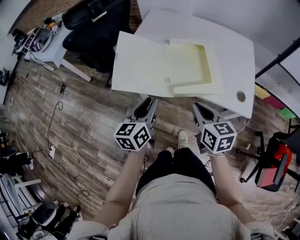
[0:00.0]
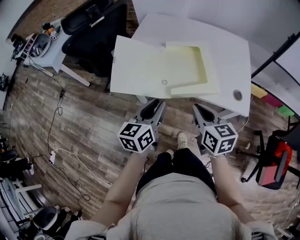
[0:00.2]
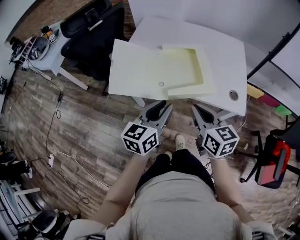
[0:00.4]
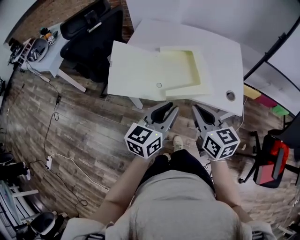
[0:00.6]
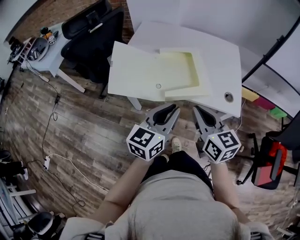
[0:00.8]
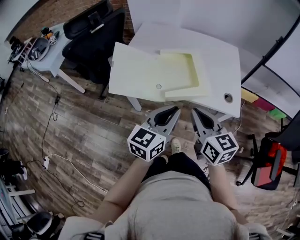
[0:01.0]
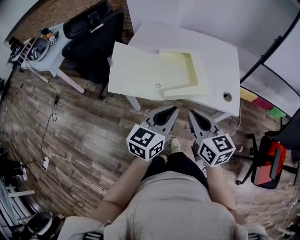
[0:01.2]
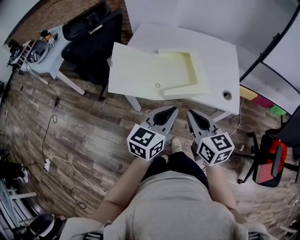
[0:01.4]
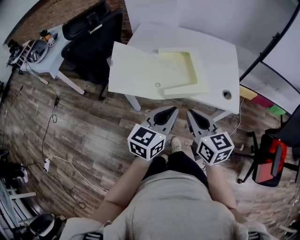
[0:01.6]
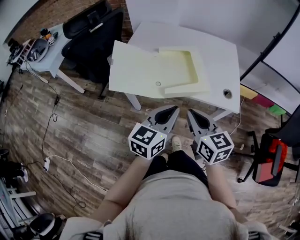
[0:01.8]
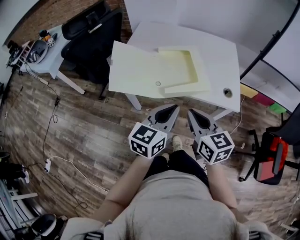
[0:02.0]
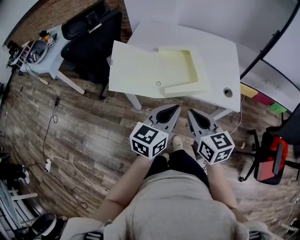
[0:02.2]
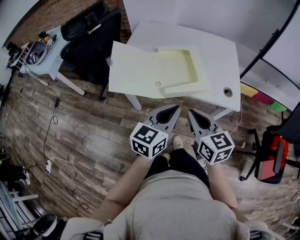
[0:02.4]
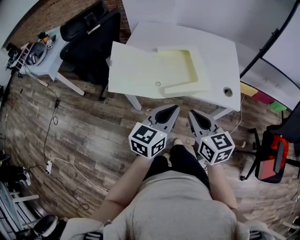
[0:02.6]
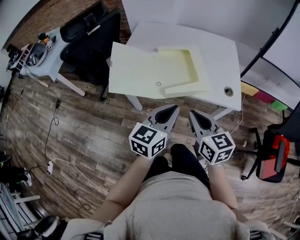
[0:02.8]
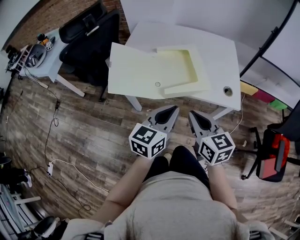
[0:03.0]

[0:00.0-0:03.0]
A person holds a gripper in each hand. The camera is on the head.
0:00.0 to 0:01.6: The left gripper shifts about 15 cm to the right, upward and backward, swivels about 30 degrees, and closes. The right gripper goes about 10 cm upward and backward.
0:01.6 to 0:03.0: There are only small adjustments of the grippers.

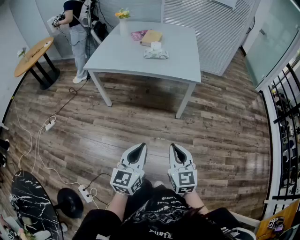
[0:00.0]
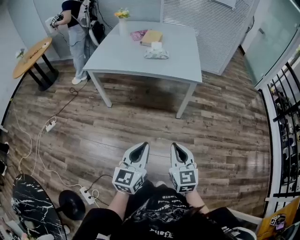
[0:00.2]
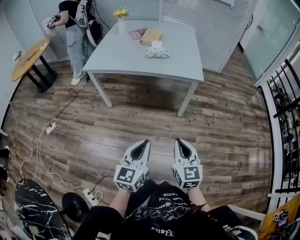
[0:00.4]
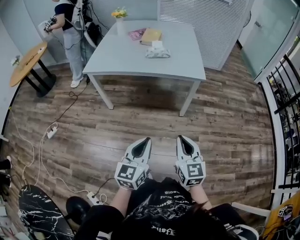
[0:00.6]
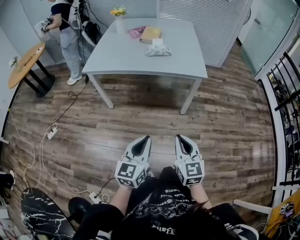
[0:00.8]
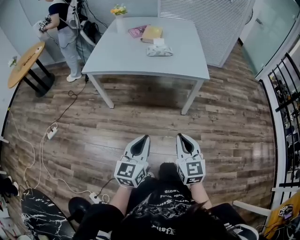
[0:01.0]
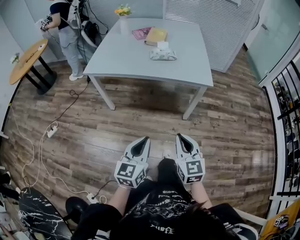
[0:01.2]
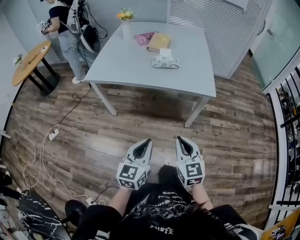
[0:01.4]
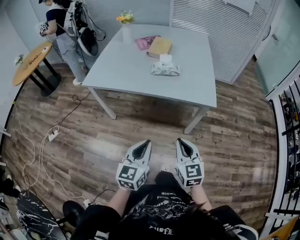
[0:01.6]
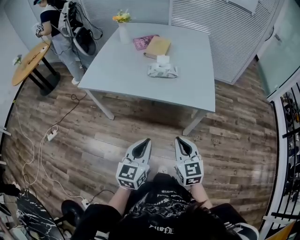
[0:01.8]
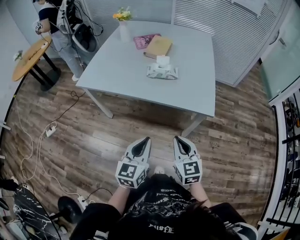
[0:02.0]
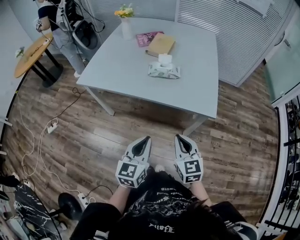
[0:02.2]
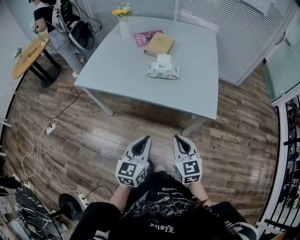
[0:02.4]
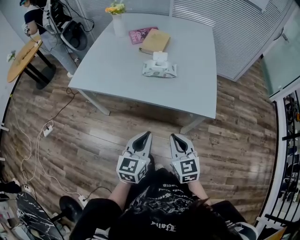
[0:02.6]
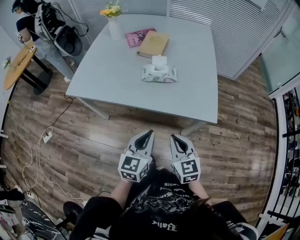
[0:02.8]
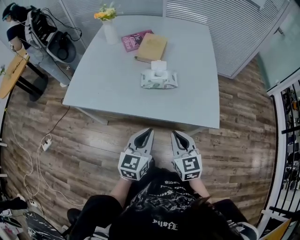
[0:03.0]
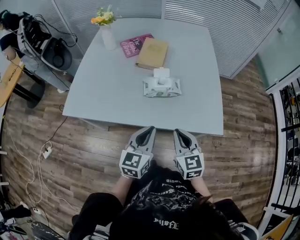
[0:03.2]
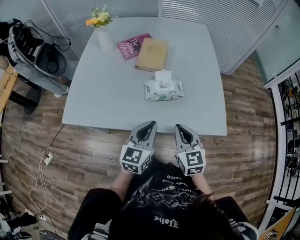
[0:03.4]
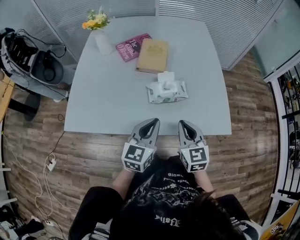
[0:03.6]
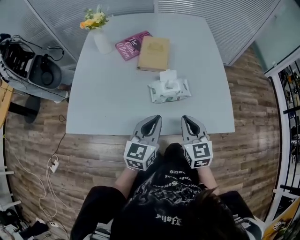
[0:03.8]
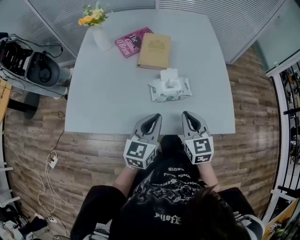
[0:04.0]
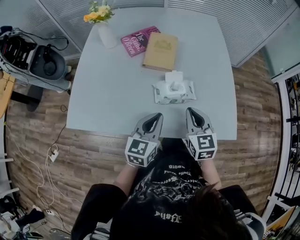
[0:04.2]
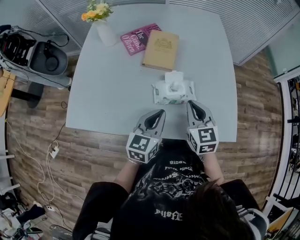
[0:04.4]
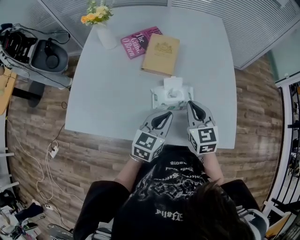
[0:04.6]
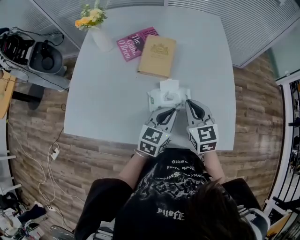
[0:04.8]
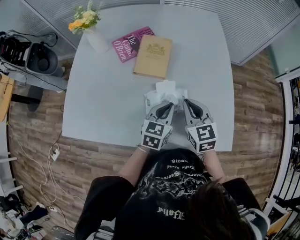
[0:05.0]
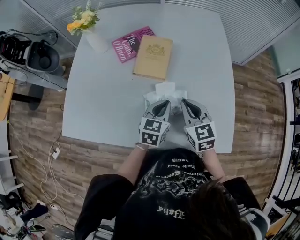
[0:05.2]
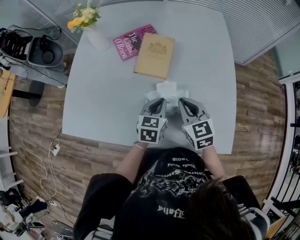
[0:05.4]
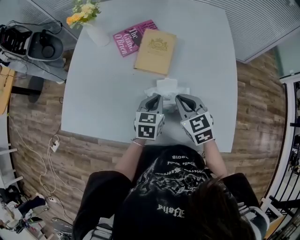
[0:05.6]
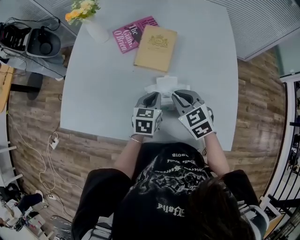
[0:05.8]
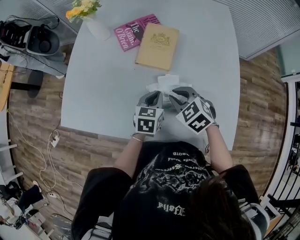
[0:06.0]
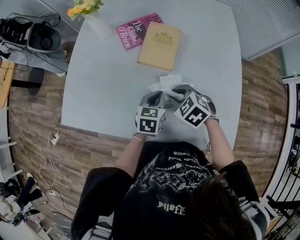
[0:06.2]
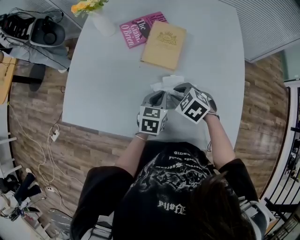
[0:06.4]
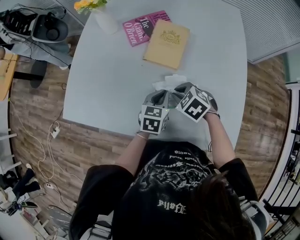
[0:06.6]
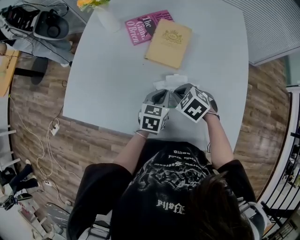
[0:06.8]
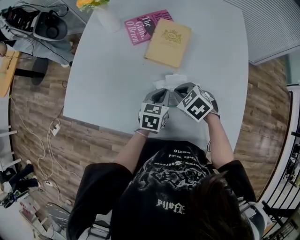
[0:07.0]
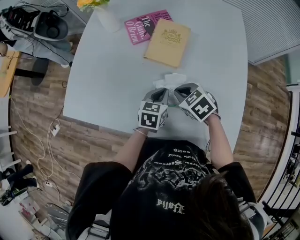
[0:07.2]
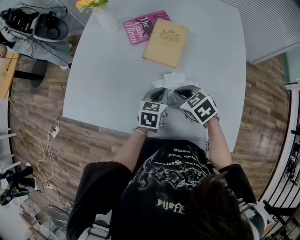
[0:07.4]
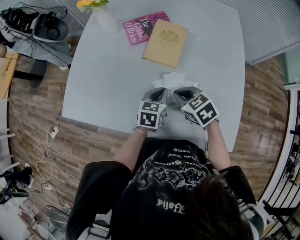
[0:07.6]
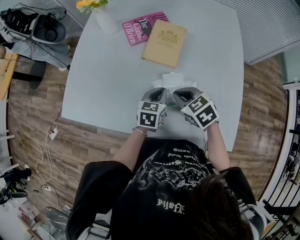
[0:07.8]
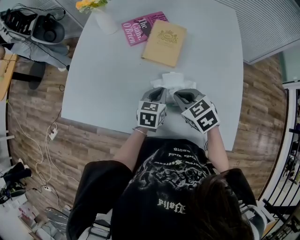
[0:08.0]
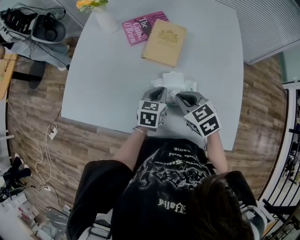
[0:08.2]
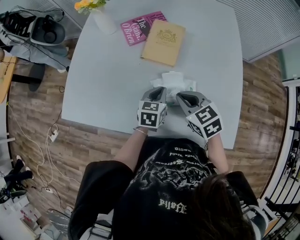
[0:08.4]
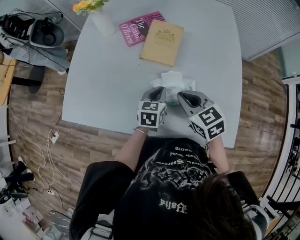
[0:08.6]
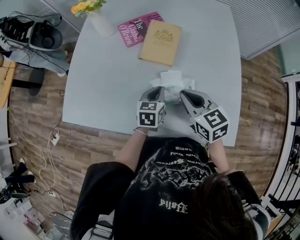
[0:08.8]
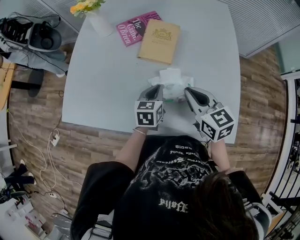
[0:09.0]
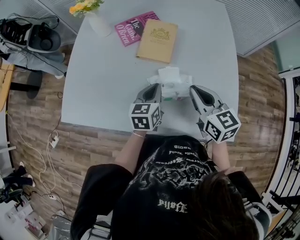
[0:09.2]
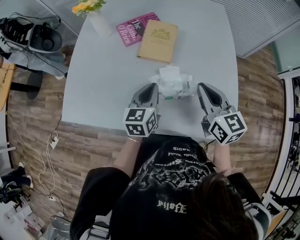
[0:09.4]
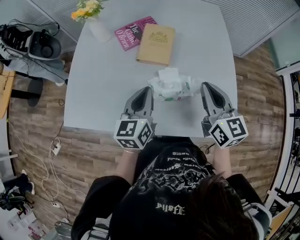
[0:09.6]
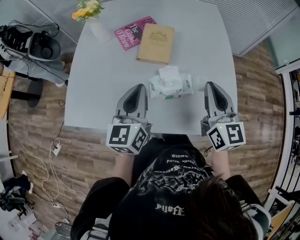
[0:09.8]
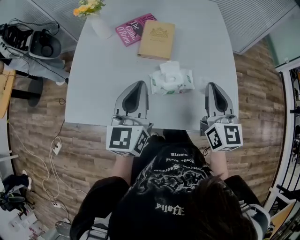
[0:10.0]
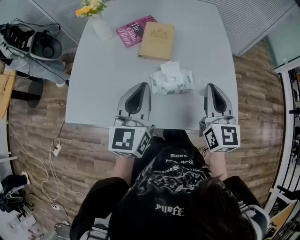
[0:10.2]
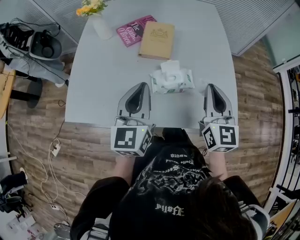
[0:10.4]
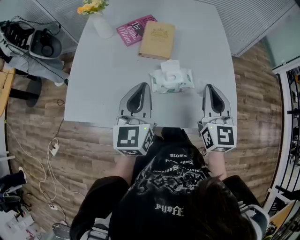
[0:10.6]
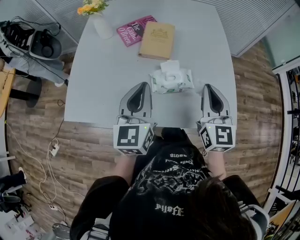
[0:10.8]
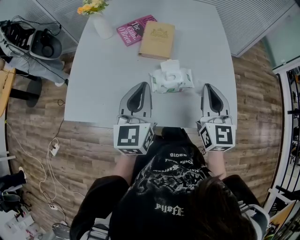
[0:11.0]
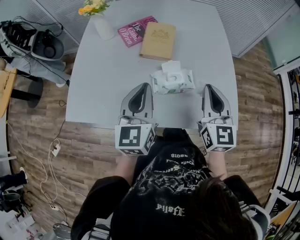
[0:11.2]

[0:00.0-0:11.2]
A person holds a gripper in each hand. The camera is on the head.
0:00.0 to 0:01.6: Both grippers travel together forward, approximately 25 cm.
0:01.6 to 0:03.2: Both grippers travel together forward, roughly 30 cm.
0:03.2 to 0:04.8: The two grippers go about 20 cm forward.
0:04.8 to 0:06.4: The right gripper travels downward by some 10 cm, angles its fingers downward, by some 30 degrees, and opens up; the left gripper shifts by roughly 10 cm, and swivels about 20 degrees.
0:06.4 to 0:08.0: The right gripper shifts by approximately 5 cm, and closes up.
0:08.0 to 0:09.6: The left gripper shifts roughly 15 cm upward, and rotates some 20 degrees, while the right gripper moves upward and to the right, some 15 cm, and angles its fingers upward, by some 40 degrees.
0:09.6 to 0:11.2: The right gripper is displaced backward by roughly 5 cm. Meanwhile the left gripper goes roughly 10 cm upward and backward.

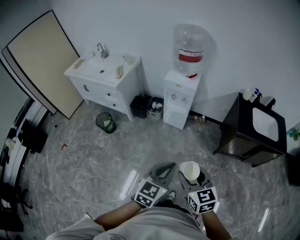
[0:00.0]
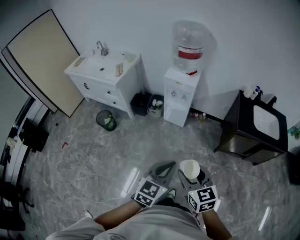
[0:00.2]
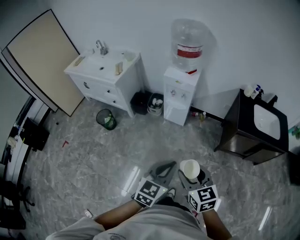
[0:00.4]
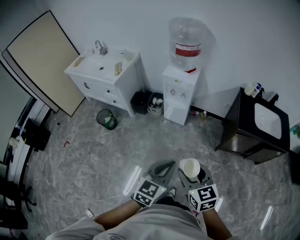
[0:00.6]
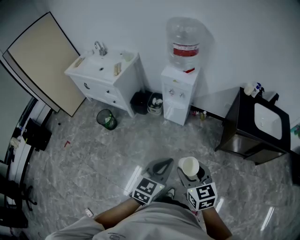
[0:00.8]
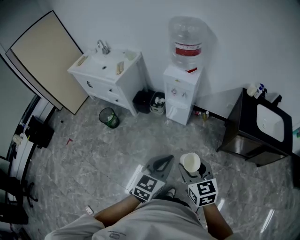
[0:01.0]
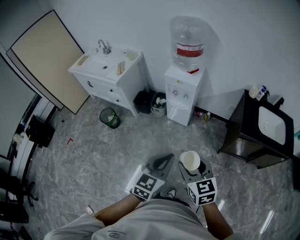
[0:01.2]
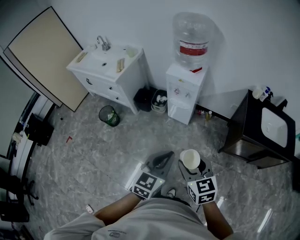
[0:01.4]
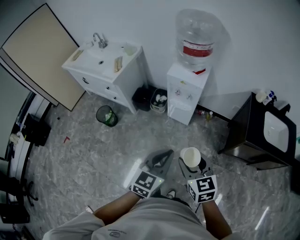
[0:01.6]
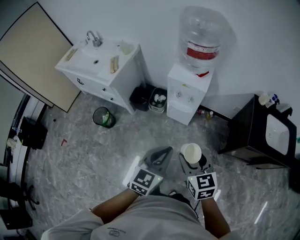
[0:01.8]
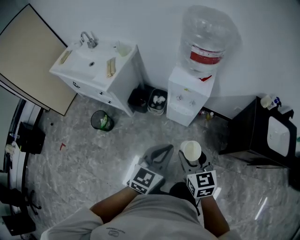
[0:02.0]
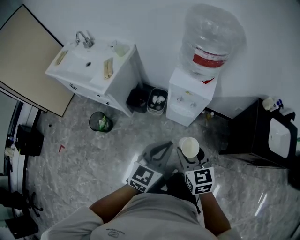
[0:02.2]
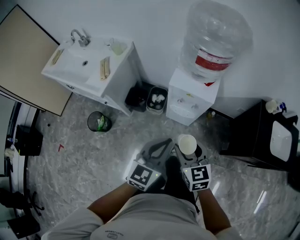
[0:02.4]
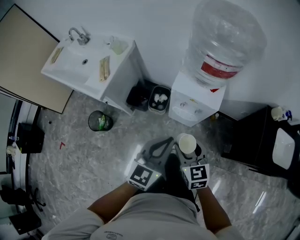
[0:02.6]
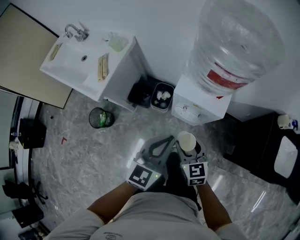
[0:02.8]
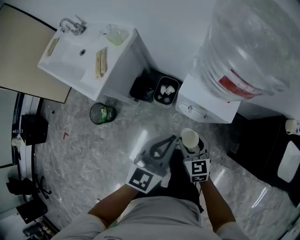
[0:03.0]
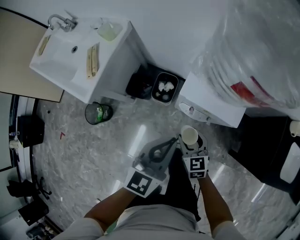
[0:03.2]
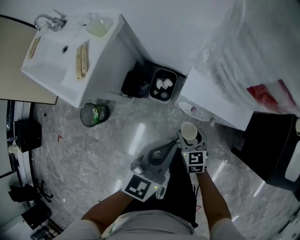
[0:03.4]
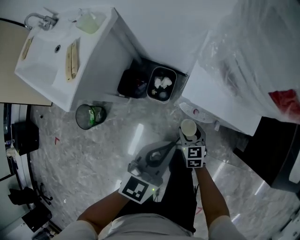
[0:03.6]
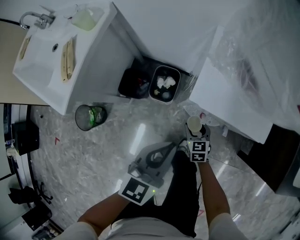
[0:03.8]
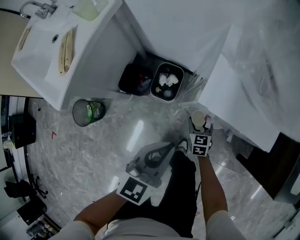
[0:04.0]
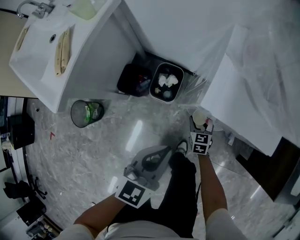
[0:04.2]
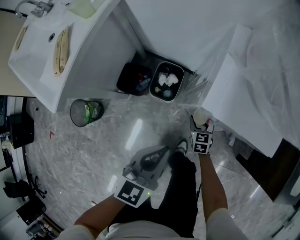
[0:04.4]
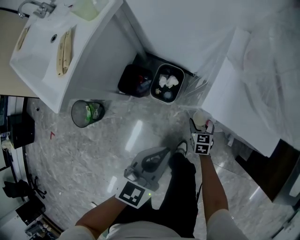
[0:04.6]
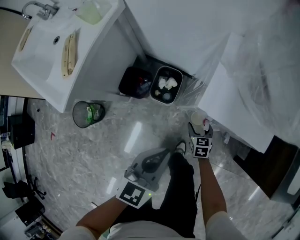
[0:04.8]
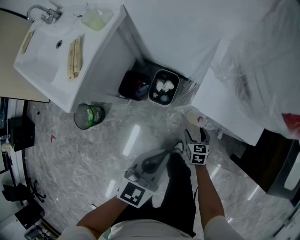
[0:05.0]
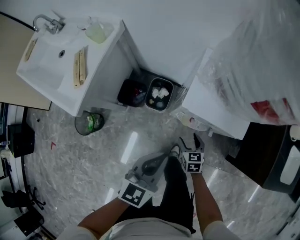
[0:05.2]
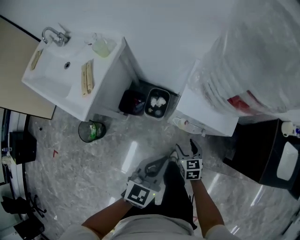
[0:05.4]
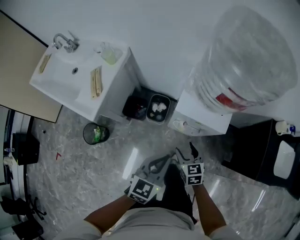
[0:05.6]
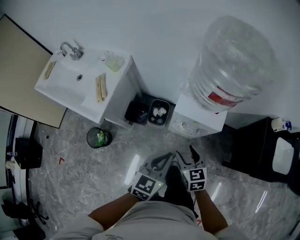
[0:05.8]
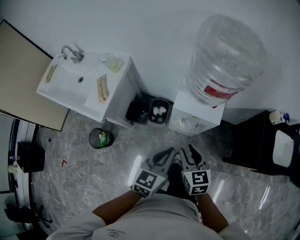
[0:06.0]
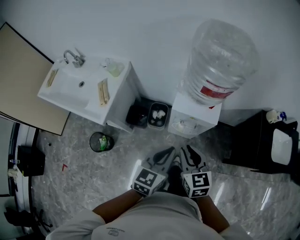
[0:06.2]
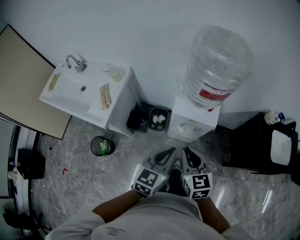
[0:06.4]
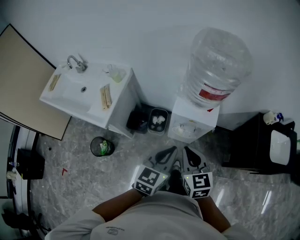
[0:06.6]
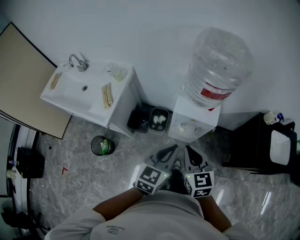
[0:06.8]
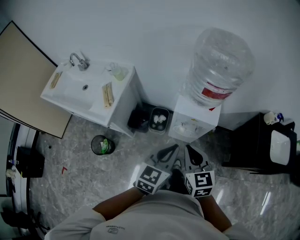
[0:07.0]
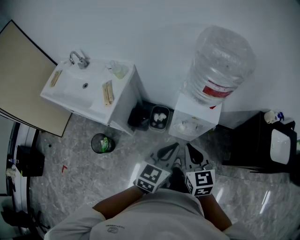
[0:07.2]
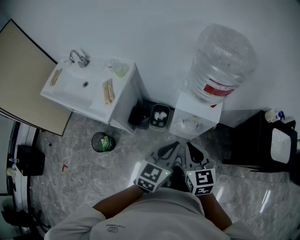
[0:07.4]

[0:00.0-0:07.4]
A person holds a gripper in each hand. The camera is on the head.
0:00.0 to 0:01.4: Both grippers move forward, about 10 cm.
0:01.4 to 0:03.0: The two grippers travel together, forward, approximately 50 cm. The right gripper shifts approximately 20 cm downward.
0:03.0 to 0:04.4: Both grippers move downward, approximately 35 cm.
0:04.4 to 0:06.0: The right gripper moves upward, about 50 cm, and closes, while the left gripper goes approximately 30 cm upward.
0:06.0 to 0:07.4: The two grippers go approximately 5 cm upward. The right gripper closes.

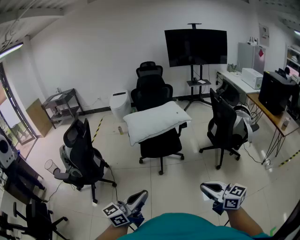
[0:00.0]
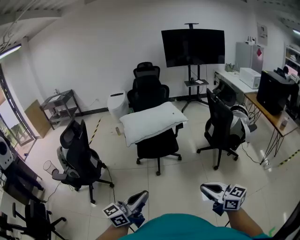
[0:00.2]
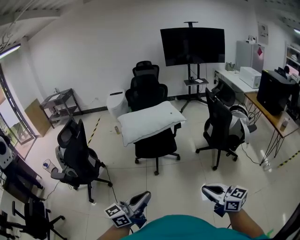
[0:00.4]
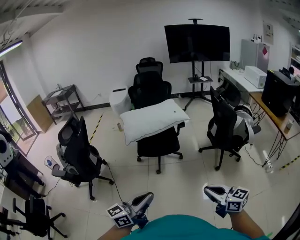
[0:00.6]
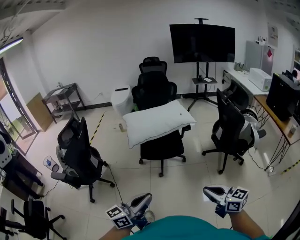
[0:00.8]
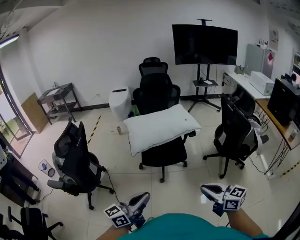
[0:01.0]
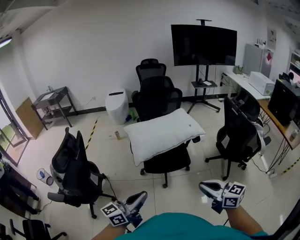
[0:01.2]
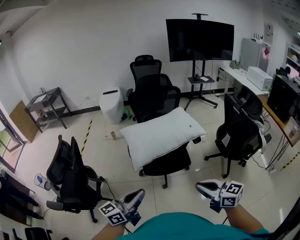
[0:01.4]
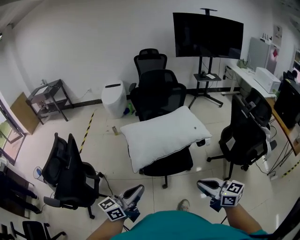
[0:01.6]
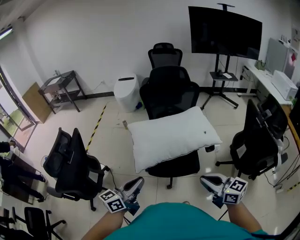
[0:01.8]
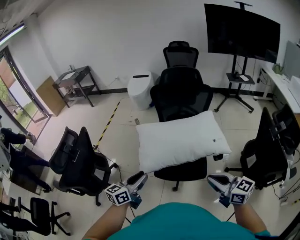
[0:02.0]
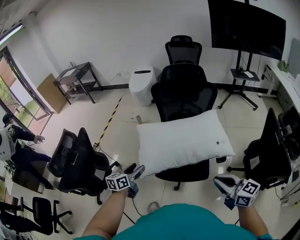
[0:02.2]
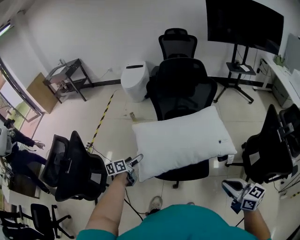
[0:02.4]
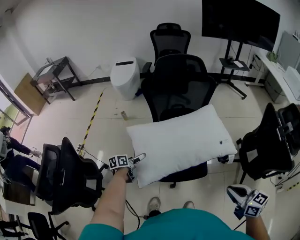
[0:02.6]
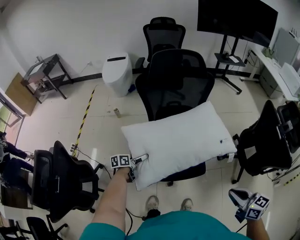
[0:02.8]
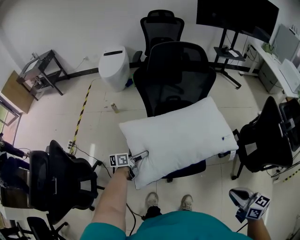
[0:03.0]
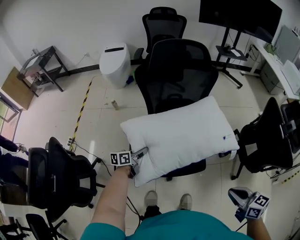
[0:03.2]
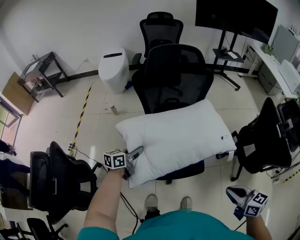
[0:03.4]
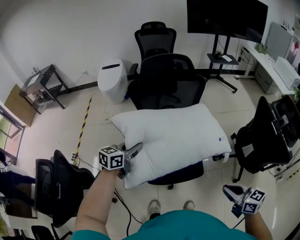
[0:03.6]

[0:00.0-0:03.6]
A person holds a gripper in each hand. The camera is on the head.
0:00.0 to 0:01.8: Both grippers are carried forward, roughly 50 cm.
0:01.8 to 0:03.6: The right gripper goes about 15 cm forward, to the right and downward, and swivels some 20 degrees. Meanwhile the left gripper heads forward, covering about 35 cm, turns by about 30 degrees, and opens, then closes again.
